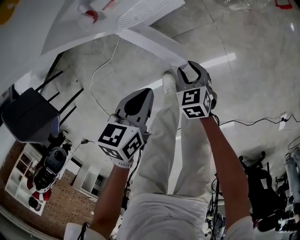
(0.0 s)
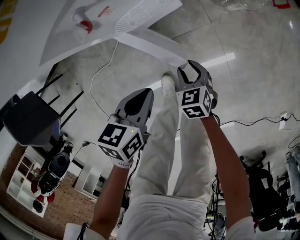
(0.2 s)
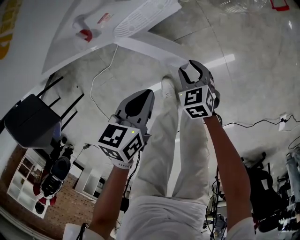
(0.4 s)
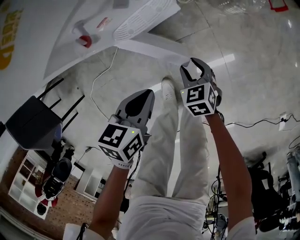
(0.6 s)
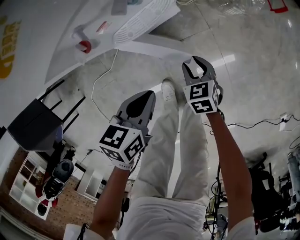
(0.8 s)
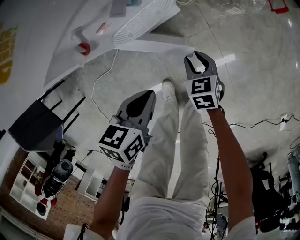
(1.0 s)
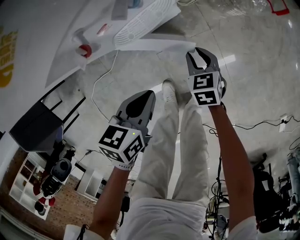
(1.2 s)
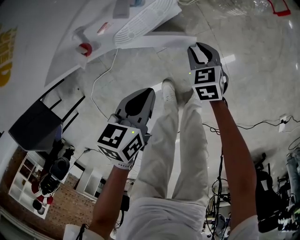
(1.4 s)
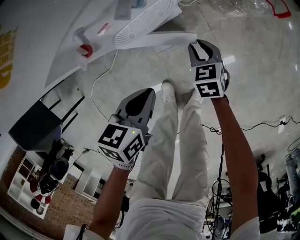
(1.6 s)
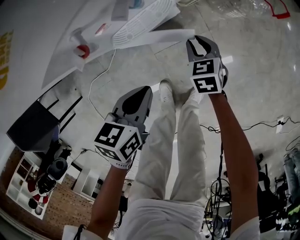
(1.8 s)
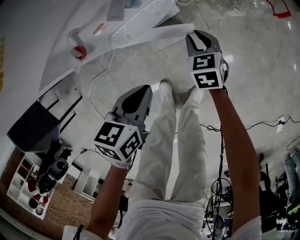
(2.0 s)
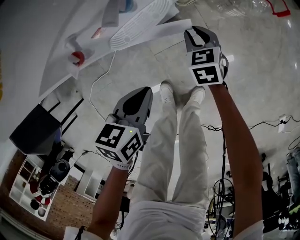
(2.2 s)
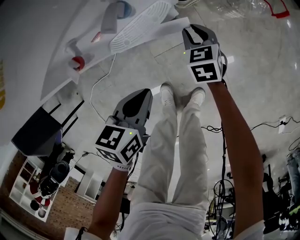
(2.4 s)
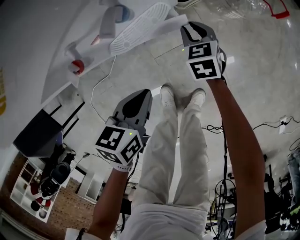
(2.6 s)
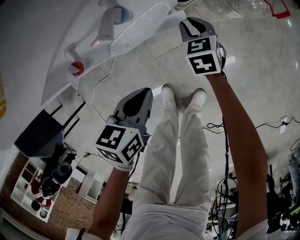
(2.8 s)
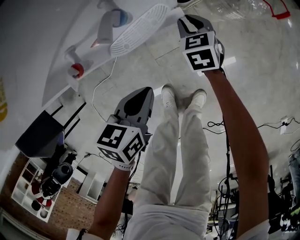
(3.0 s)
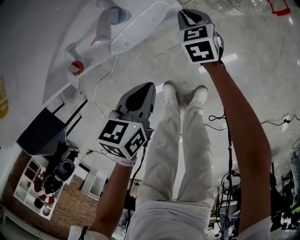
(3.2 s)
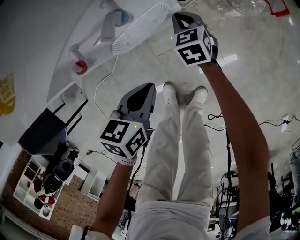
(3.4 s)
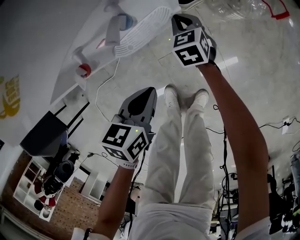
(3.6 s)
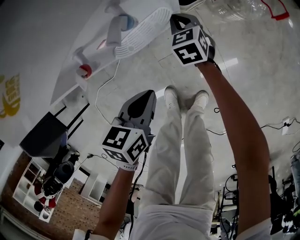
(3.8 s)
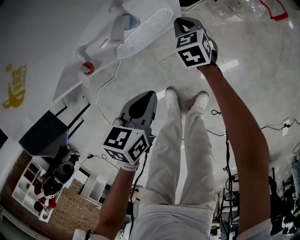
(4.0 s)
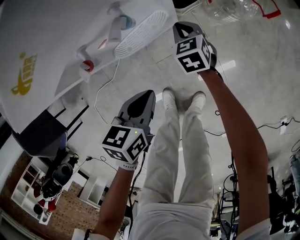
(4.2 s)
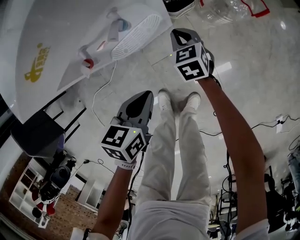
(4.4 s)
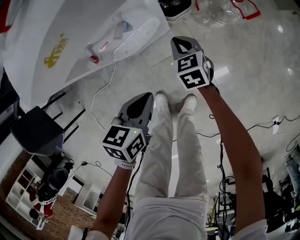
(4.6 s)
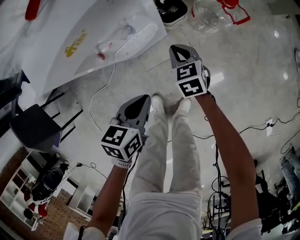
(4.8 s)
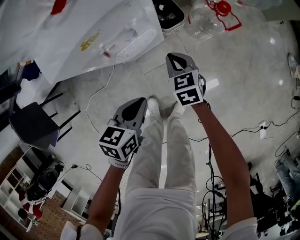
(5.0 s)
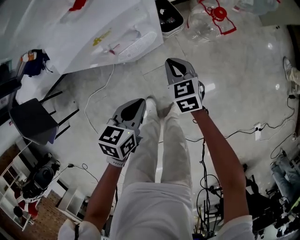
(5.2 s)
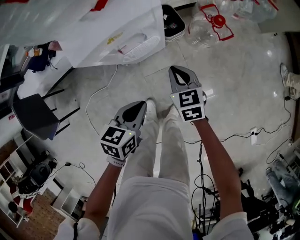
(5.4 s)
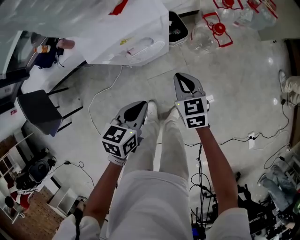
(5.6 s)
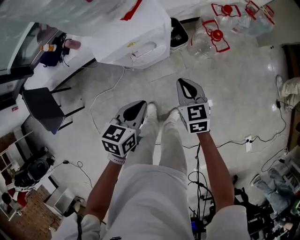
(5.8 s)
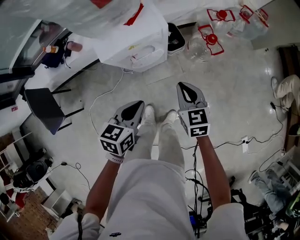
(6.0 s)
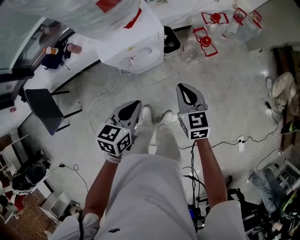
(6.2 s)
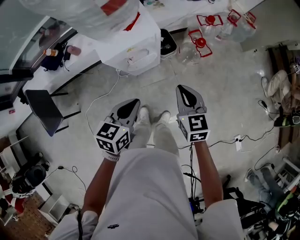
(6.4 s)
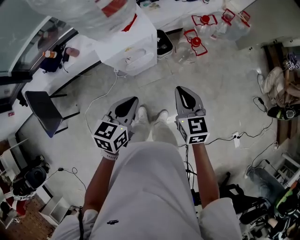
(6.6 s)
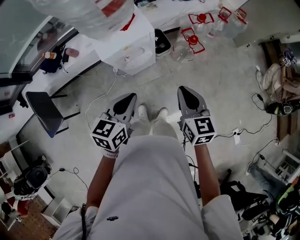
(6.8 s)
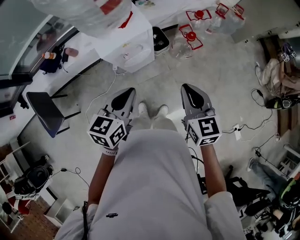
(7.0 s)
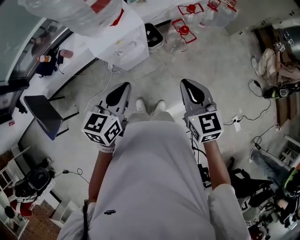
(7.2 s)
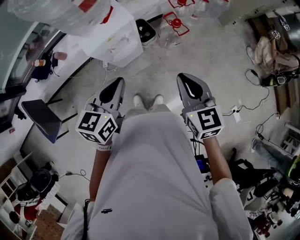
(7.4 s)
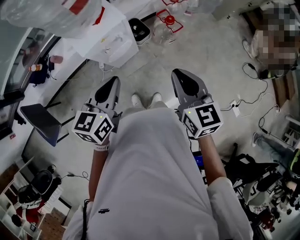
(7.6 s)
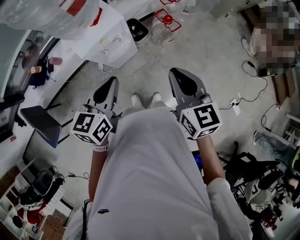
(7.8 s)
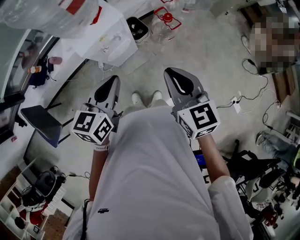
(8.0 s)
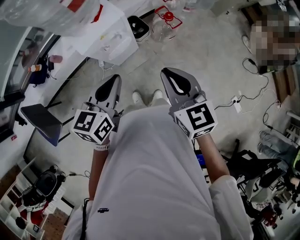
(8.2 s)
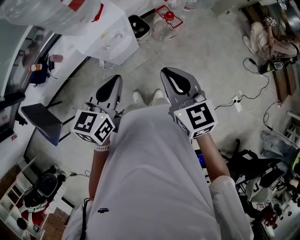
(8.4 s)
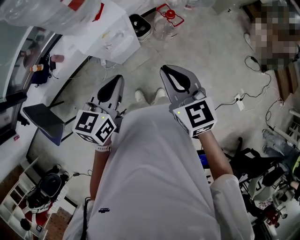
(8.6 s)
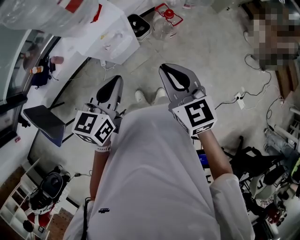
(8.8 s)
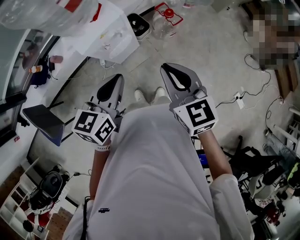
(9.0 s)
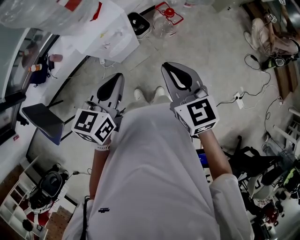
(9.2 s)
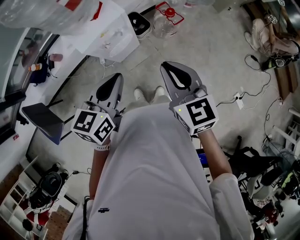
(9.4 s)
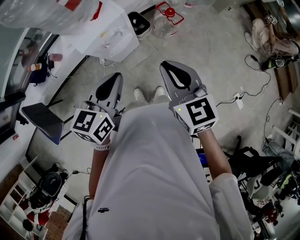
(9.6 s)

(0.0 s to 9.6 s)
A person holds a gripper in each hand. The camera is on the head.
0.0 s - 1.6 s: The left gripper shifts some 5 cm forward; the right gripper is displaced forward by roughly 15 cm.
1.6 s - 3.2 s: The right gripper moves forward, about 10 cm.
3.2 s - 4.8 s: The right gripper heads upward and backward, covering roughly 15 cm. The left gripper travels upward by some 10 cm.
4.8 s - 6.4 s: The two grippers go approximately 30 cm upward.
6.4 s - 8.0 s: The left gripper shifts some 10 cm upward. Meanwhile the right gripper goes about 20 cm upward and backward.
8.0 s - 9.6 s: There are only small adjustments of the grippers.

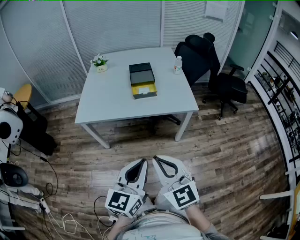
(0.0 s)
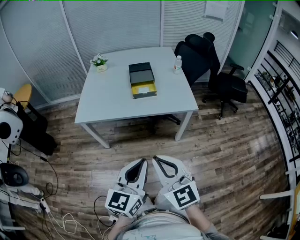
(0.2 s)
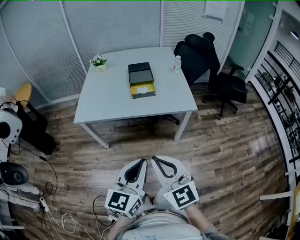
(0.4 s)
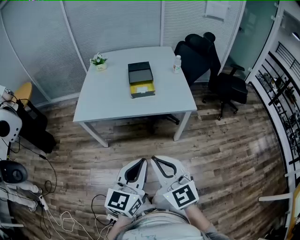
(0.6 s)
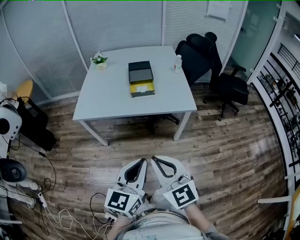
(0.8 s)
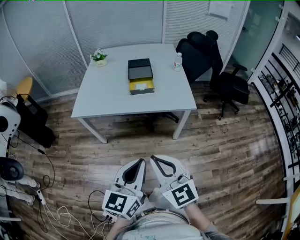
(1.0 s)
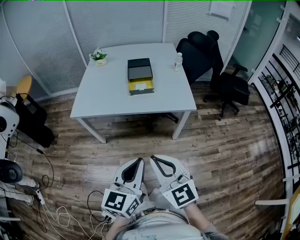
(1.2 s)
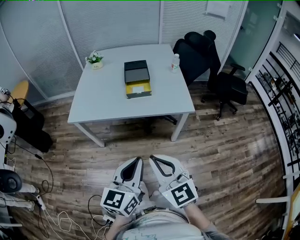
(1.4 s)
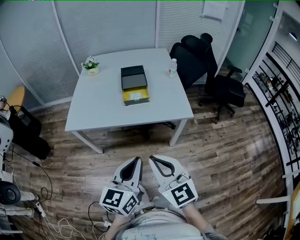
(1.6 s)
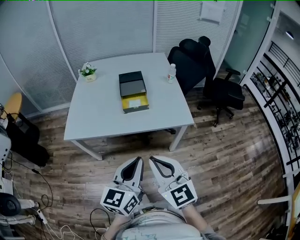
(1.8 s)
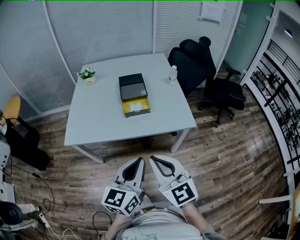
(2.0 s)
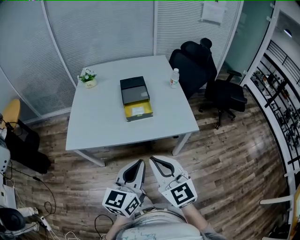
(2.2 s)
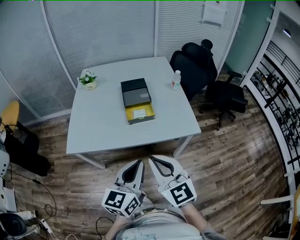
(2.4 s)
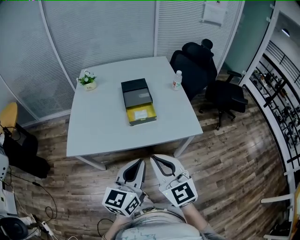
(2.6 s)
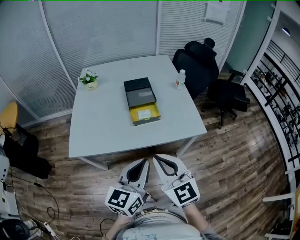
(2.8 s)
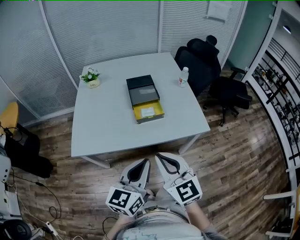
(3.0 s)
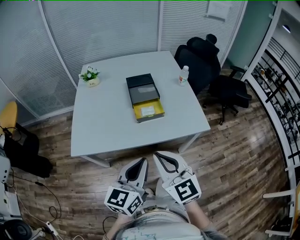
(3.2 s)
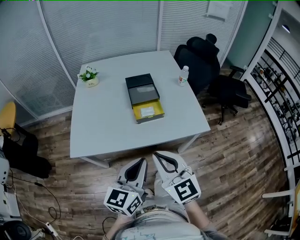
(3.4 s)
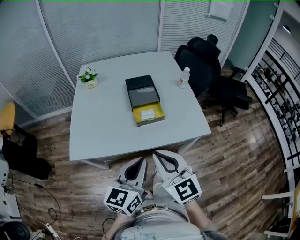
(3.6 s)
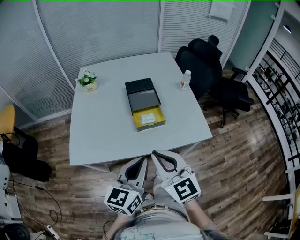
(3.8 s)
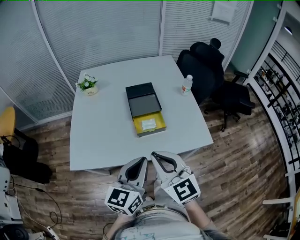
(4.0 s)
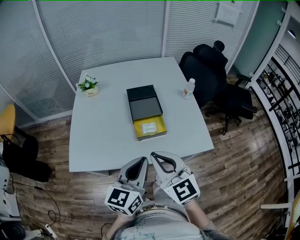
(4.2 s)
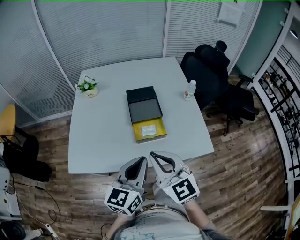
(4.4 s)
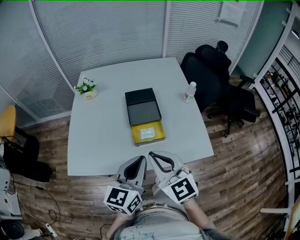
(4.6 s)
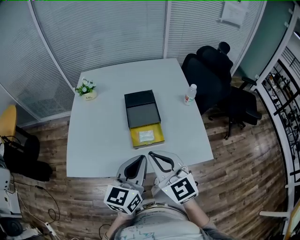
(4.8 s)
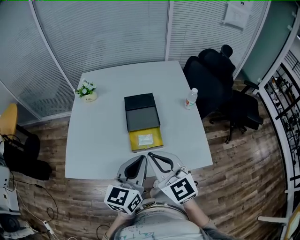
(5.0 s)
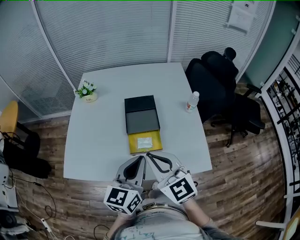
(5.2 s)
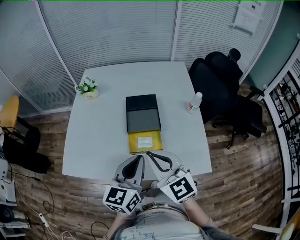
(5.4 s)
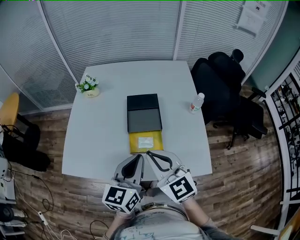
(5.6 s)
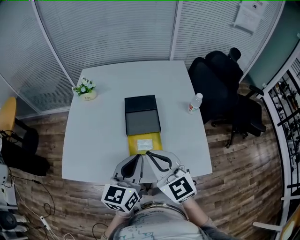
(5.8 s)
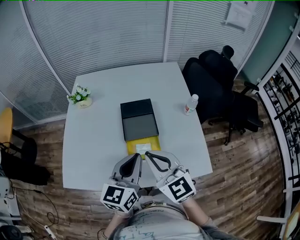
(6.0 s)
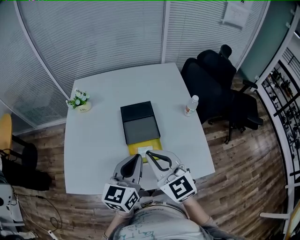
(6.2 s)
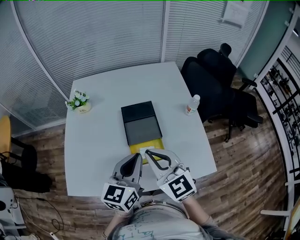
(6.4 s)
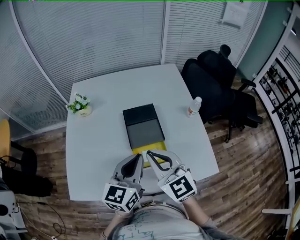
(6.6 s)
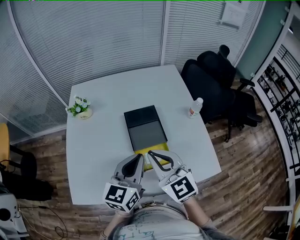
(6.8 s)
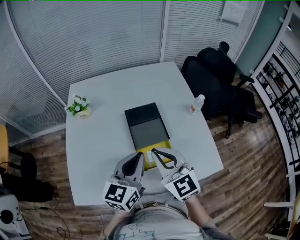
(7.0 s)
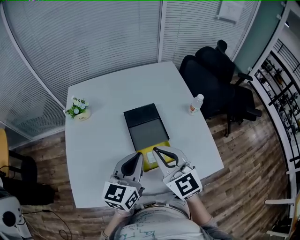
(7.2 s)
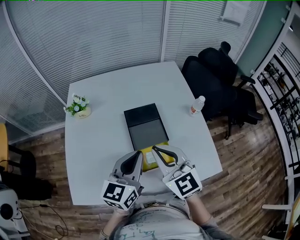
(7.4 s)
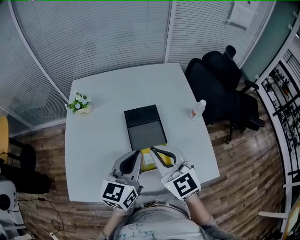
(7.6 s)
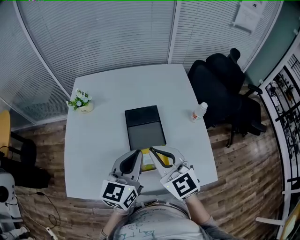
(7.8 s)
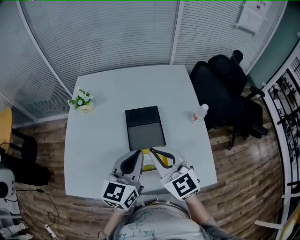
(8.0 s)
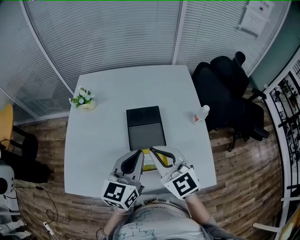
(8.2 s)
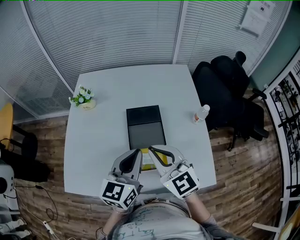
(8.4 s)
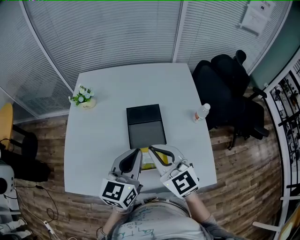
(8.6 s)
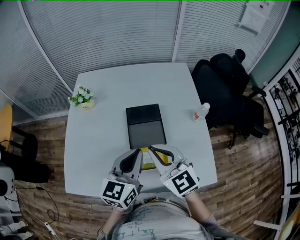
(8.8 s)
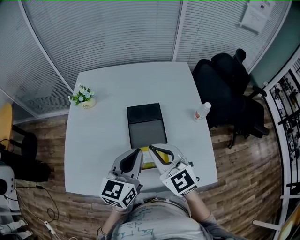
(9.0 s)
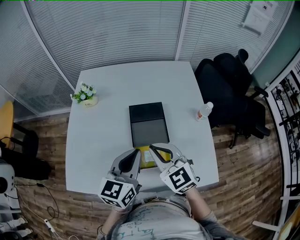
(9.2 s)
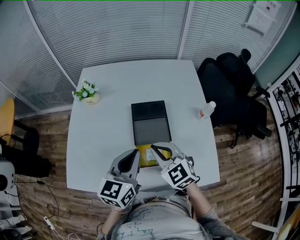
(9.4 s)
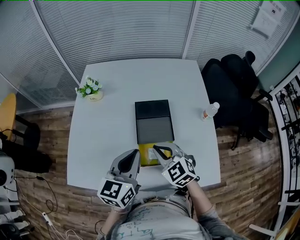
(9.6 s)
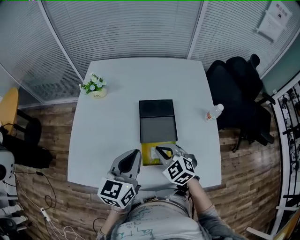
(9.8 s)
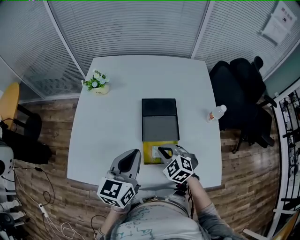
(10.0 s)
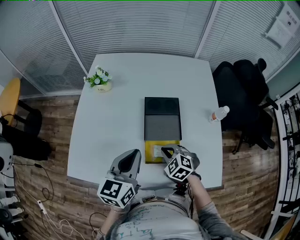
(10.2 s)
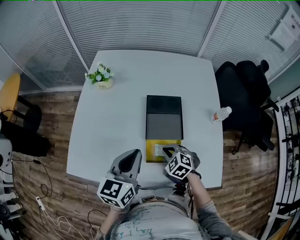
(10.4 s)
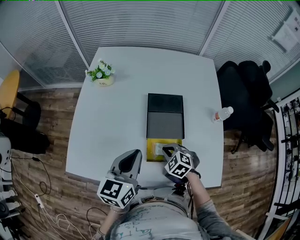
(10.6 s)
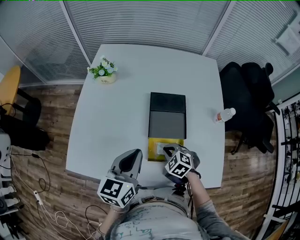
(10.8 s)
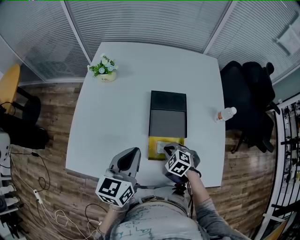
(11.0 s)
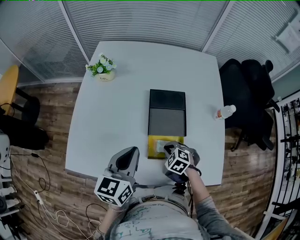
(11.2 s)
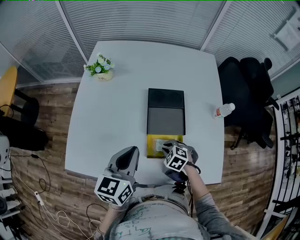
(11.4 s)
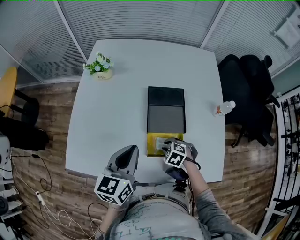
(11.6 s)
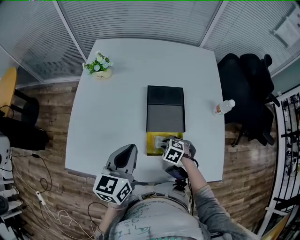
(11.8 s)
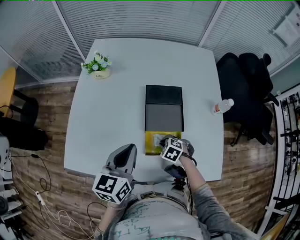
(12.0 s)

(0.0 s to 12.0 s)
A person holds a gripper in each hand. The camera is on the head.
0.0 s - 1.6 s: The two grippers go roughly 10 cm forward.
1.6 s - 3.0 s: The two grippers go roughly 20 cm forward and to the left.
3.0 s - 4.4 s: The two grippers go about 20 cm forward.
4.4 s - 6.0 s: The grippers both shift forward by some 15 cm.
6.0 s - 7.6 s: The two grippers go some 10 cm forward.
7.6 s - 9.0 s: There are only small adjustments of the grippers.
9.0 s - 10.4 s: The left gripper moves to the left, roughly 10 cm. Meanwhile the right gripper shifts roughly 25 cm downward, and tilts its fingers approximately 40 degrees downward.
10.4 s - 12.0 s: The right gripper is displaced downward by roughly 10 cm.

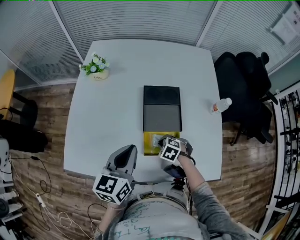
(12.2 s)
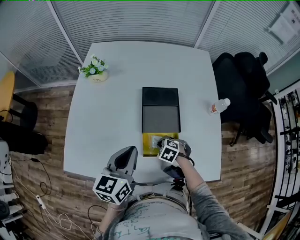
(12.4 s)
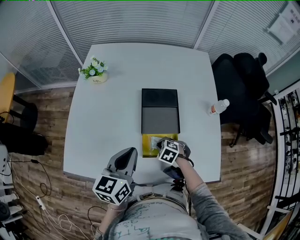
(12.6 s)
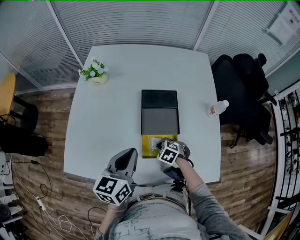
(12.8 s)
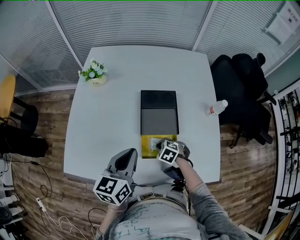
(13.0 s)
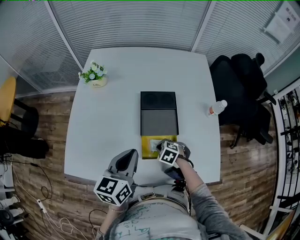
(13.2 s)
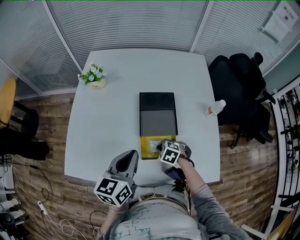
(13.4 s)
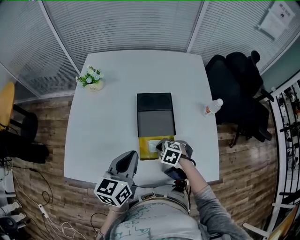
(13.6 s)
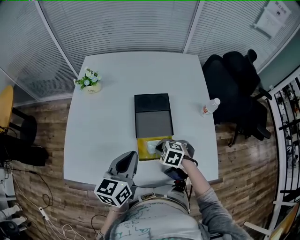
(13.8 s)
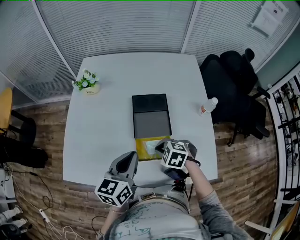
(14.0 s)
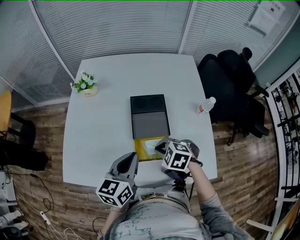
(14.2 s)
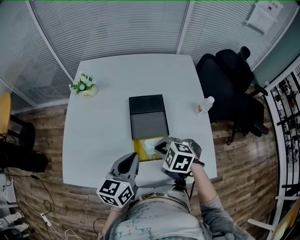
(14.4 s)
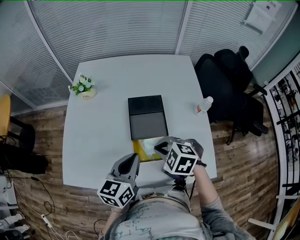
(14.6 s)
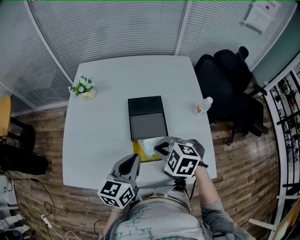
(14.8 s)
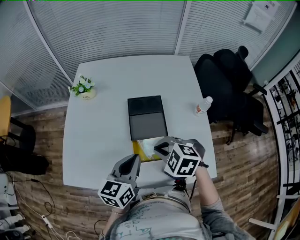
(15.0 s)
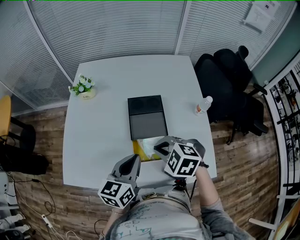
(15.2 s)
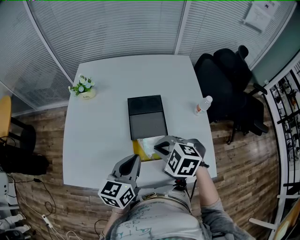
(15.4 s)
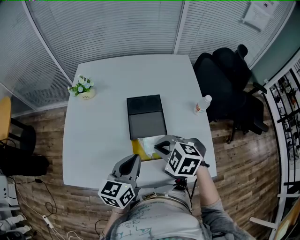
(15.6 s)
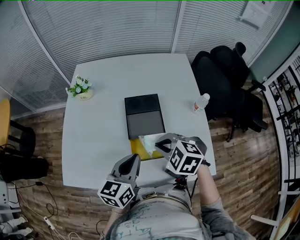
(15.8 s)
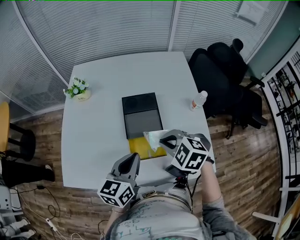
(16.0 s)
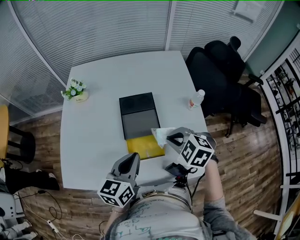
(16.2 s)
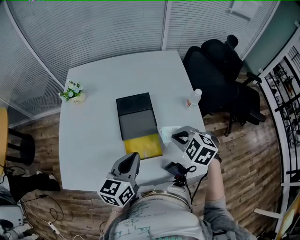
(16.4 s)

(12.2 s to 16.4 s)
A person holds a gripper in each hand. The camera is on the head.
12.2 s - 13.6 s: The right gripper shifts roughly 5 cm upward.
13.6 s - 15.0 s: The right gripper moves upward, approximately 20 cm.
15.0 s - 16.4 s: The right gripper goes about 15 cm to the right.
